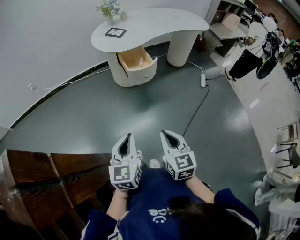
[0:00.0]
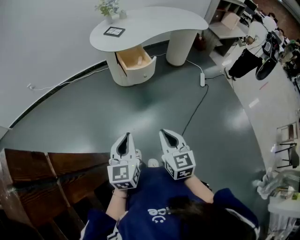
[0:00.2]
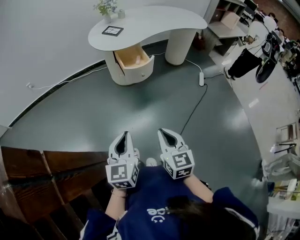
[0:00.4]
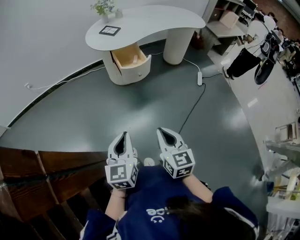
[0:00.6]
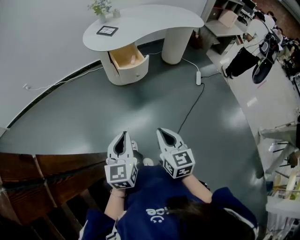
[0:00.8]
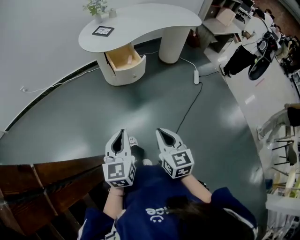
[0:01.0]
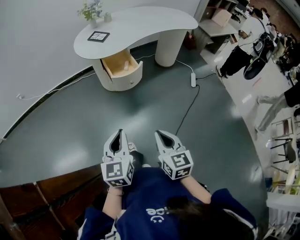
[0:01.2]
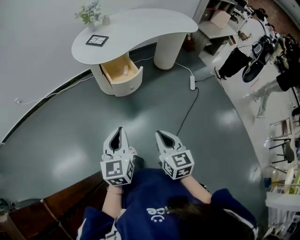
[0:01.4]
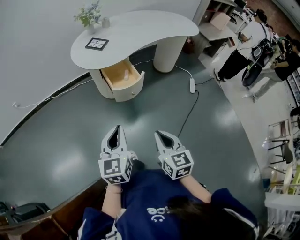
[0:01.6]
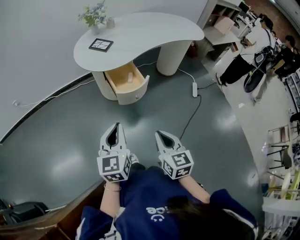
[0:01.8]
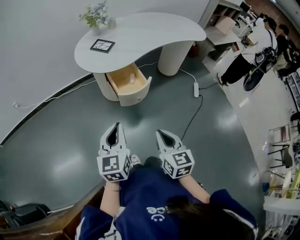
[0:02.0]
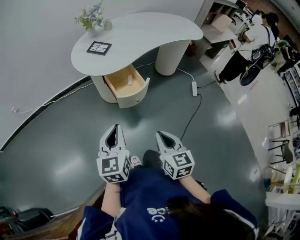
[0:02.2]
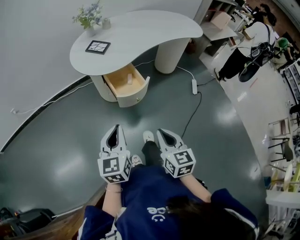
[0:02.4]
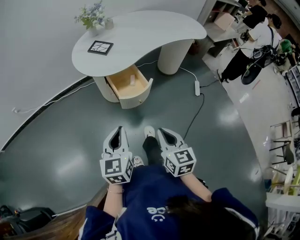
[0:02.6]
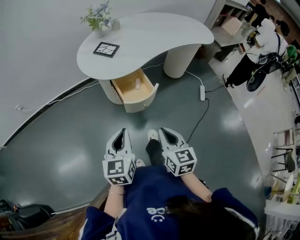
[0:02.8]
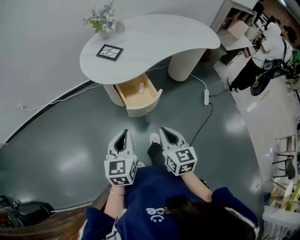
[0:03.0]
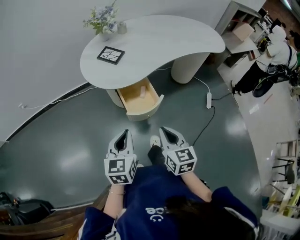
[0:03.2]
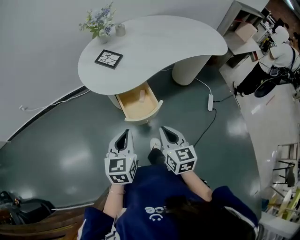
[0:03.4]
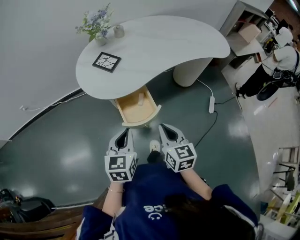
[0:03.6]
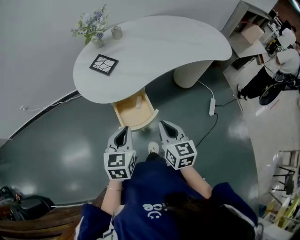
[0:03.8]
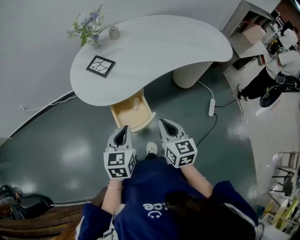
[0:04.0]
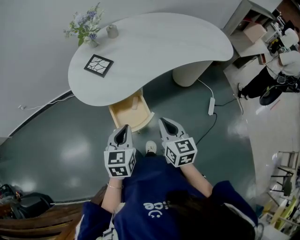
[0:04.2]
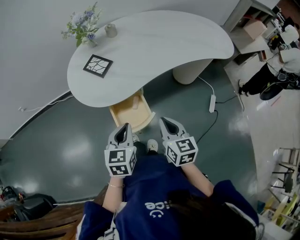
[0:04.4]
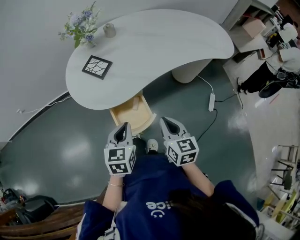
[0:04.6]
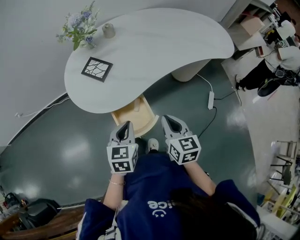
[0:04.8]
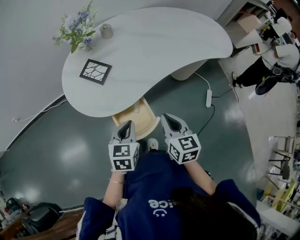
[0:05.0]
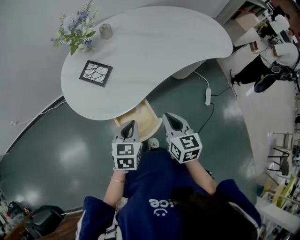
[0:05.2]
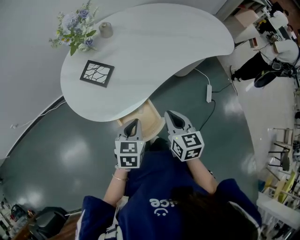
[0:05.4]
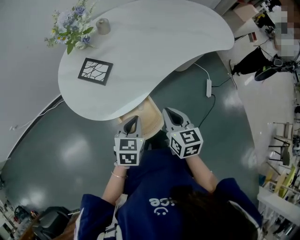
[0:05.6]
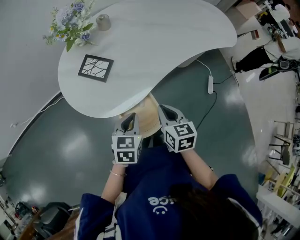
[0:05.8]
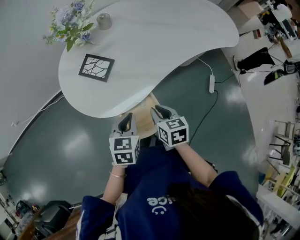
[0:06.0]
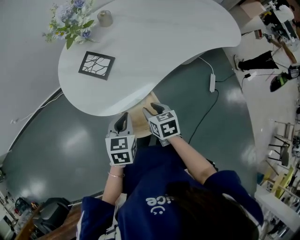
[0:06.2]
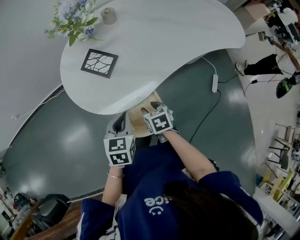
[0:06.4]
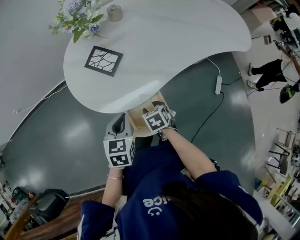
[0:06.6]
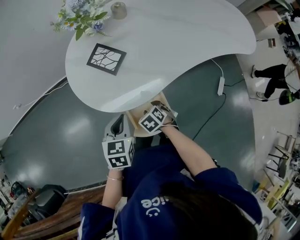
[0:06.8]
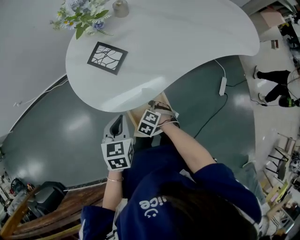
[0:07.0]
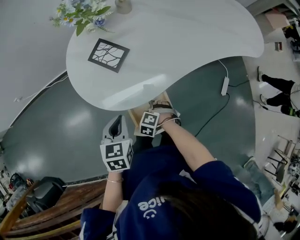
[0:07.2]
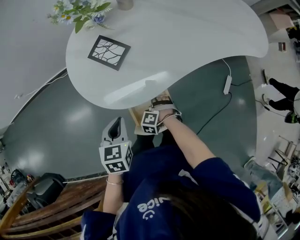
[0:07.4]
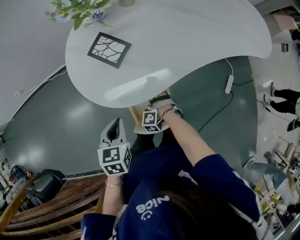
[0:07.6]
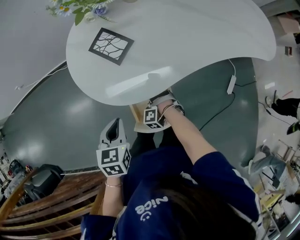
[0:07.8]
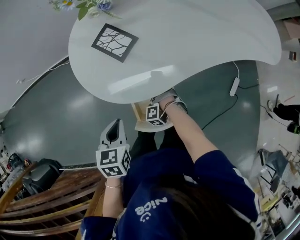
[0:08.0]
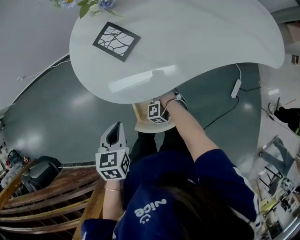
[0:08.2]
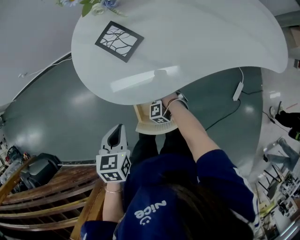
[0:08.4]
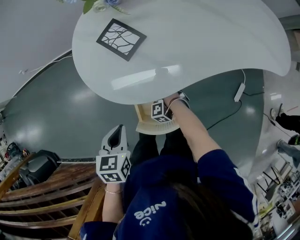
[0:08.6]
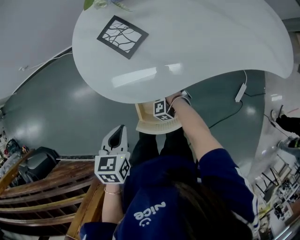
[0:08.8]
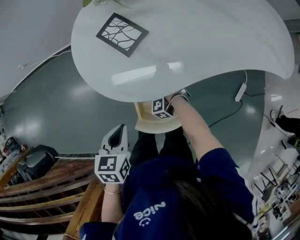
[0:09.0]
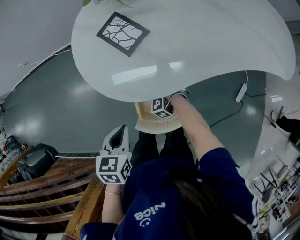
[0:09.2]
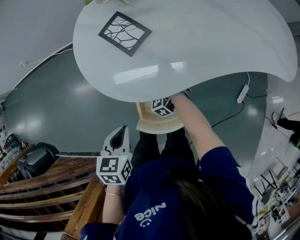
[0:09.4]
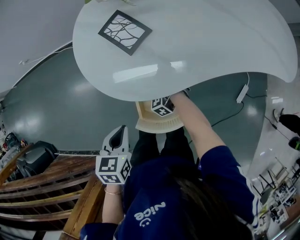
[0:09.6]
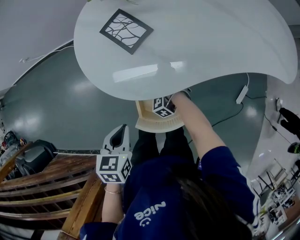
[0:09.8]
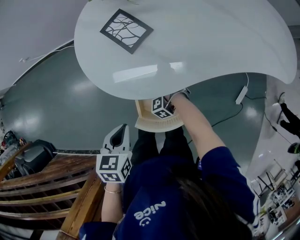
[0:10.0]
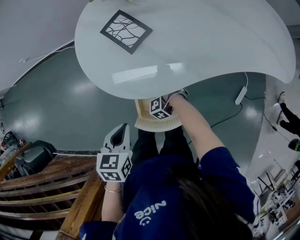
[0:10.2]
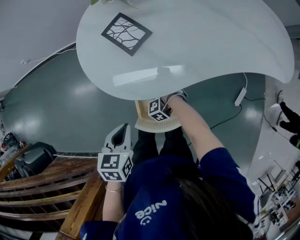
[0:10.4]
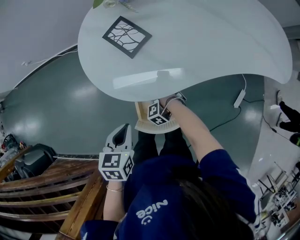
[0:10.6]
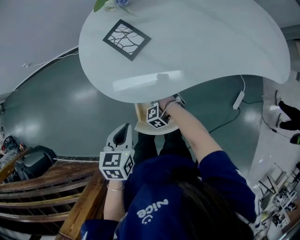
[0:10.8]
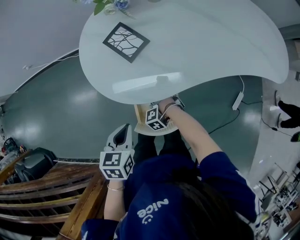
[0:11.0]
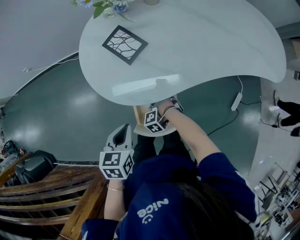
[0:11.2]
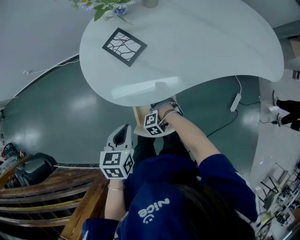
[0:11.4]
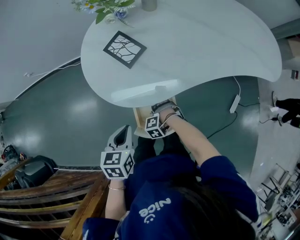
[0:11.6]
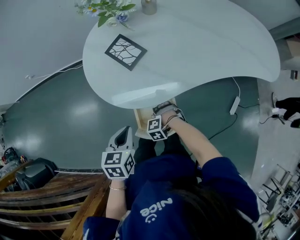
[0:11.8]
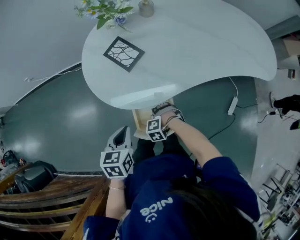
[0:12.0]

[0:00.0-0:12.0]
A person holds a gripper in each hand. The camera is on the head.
0:00.0 to 0:01.6: The two grippers go some 15 cm forward.
0:01.6 to 0:03.0: Both grippers travel together forward, about 15 cm.
0:03.0 to 0:04.4: The two grippers go about 20 cm forward and to the right.
0:04.4 to 0:06.0: The left gripper heads forward, to the left and downward, covering roughly 15 cm; the right gripper travels to the left, forward and downward by roughly 15 cm, and rotates about 20 degrees.
0:06.0 to 0:07.6: The left gripper ends up about 10 cm from where it was, and turns by some 20 degrees. Meanwhile the right gripper goes about 20 cm downward, twists some 110 degrees counterclockwise, seen from behind, and opens its fingers.
0:07.6 to 0:09.0: The right gripper travels downward by about 5 cm, and rotates roughly 30 degrees.
0:09.0 to 0:10.4: The right gripper closes up.
0:10.4 to 0:12.0: The right gripper is displaced upward by some 5 cm, and swivels about 20 degrees.

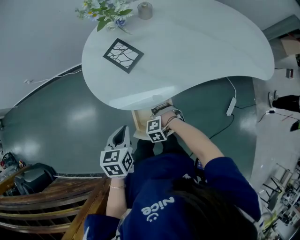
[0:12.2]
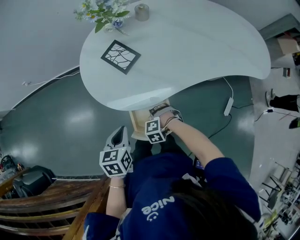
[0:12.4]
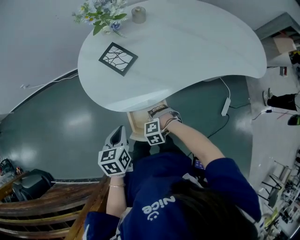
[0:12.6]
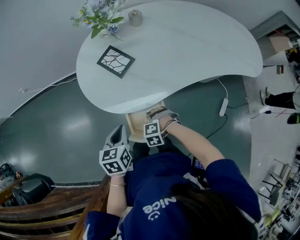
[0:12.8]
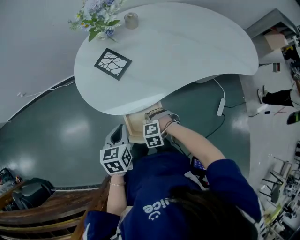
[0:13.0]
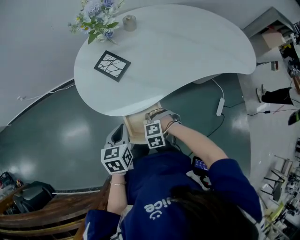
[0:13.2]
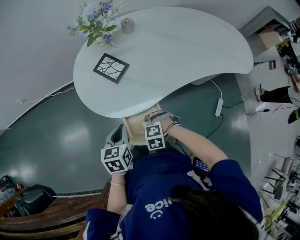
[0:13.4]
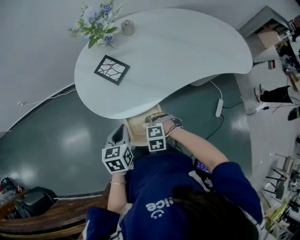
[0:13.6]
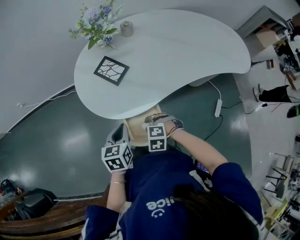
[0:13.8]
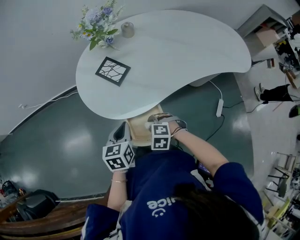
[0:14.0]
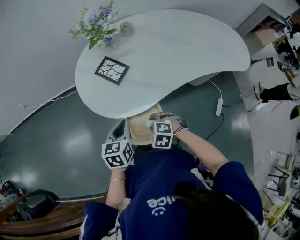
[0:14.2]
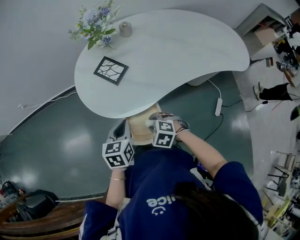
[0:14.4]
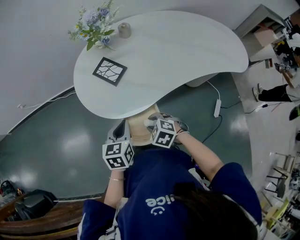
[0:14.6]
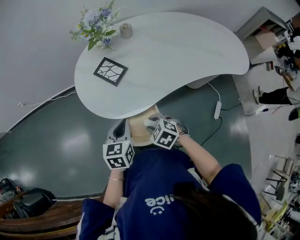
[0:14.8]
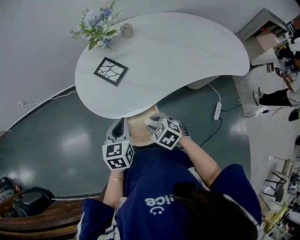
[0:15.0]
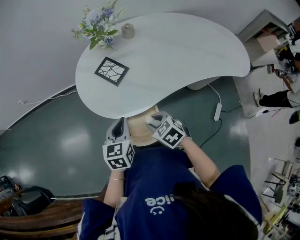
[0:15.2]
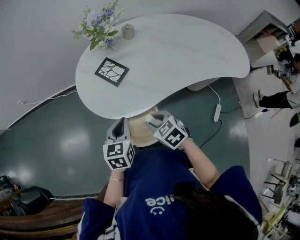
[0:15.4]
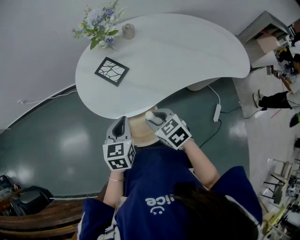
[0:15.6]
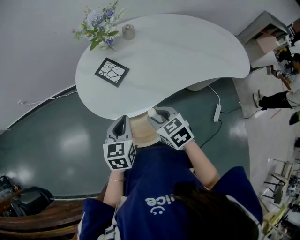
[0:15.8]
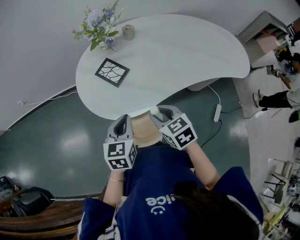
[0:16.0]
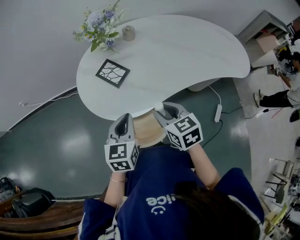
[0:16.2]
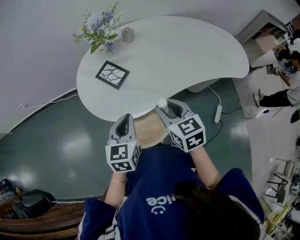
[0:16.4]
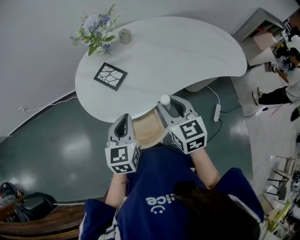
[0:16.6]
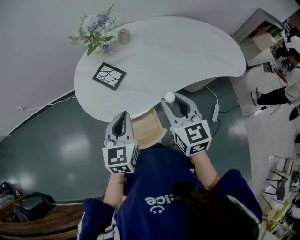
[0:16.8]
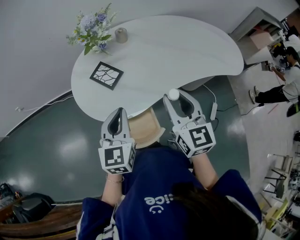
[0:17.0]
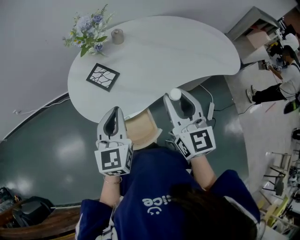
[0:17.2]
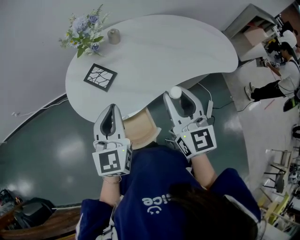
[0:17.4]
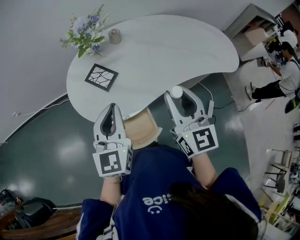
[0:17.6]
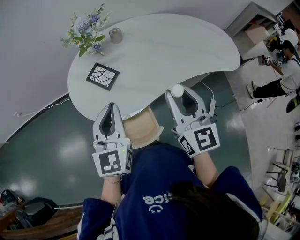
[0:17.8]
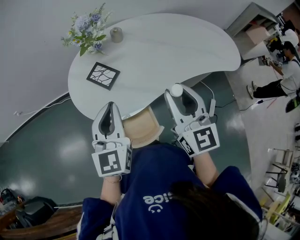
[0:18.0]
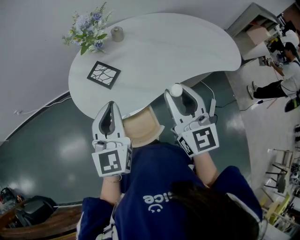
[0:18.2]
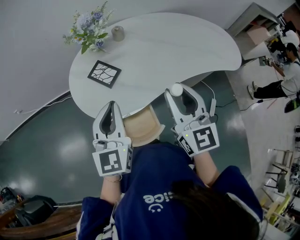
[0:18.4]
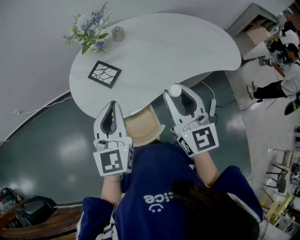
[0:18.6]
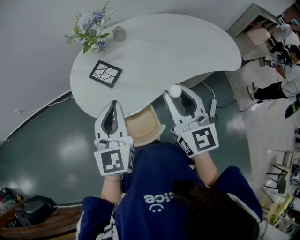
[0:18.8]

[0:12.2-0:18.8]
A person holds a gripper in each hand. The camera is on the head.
0:12.2 to 0:13.8: The right gripper is displaced upward by approximately 10 cm, and rotates approximately 30 degrees.
0:13.8 to 0:15.4: The left gripper shifts by some 5 cm, while the right gripper heads upward, covering roughly 10 cm, and twists about 40 degrees clockwise, seen from behind.
0:15.4 to 0:17.2: The left gripper is displaced upward by approximately 10 cm, and turns by roughly 20 degrees. The right gripper moves upward and to the right, some 25 cm, and points its fingers roughly 40 degrees further upward.
0:17.2 to 0:18.8: The grippers stay close to where they were, moving slightly.

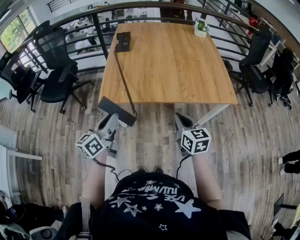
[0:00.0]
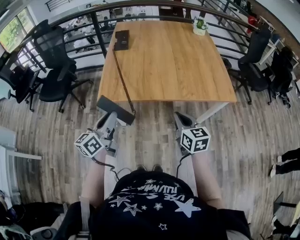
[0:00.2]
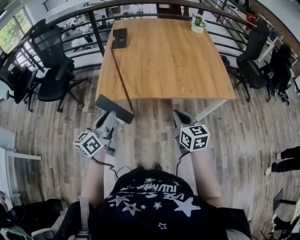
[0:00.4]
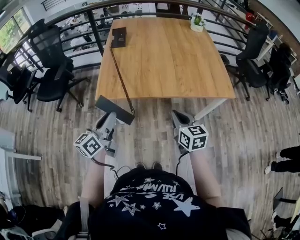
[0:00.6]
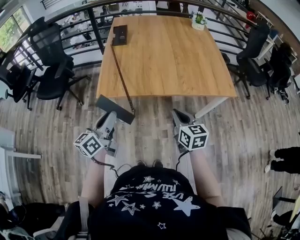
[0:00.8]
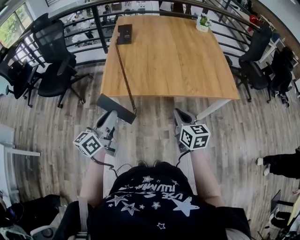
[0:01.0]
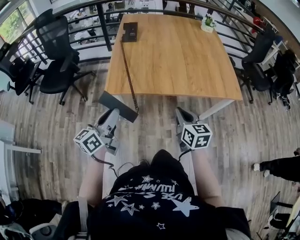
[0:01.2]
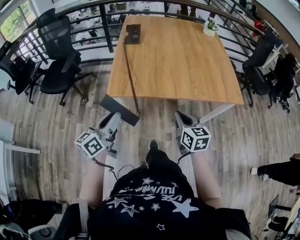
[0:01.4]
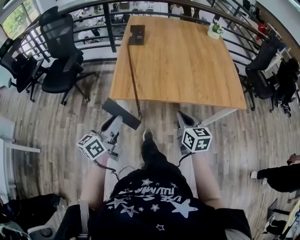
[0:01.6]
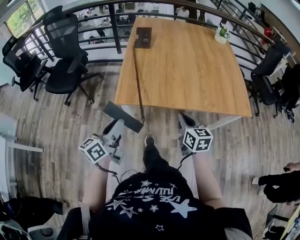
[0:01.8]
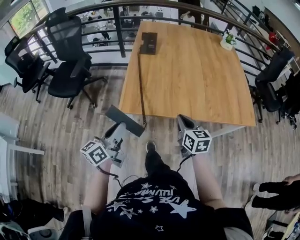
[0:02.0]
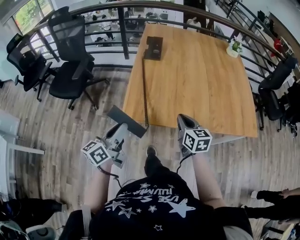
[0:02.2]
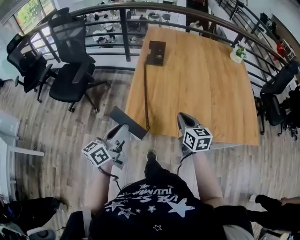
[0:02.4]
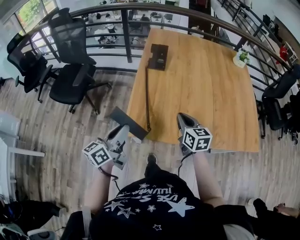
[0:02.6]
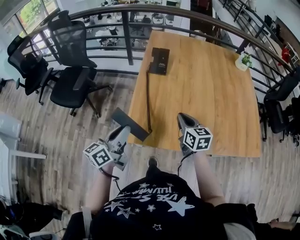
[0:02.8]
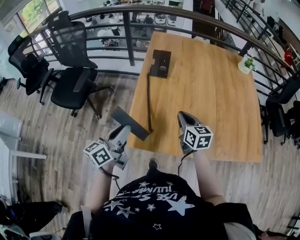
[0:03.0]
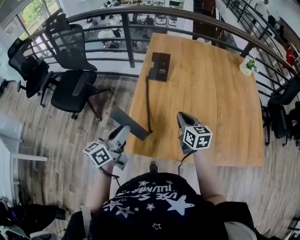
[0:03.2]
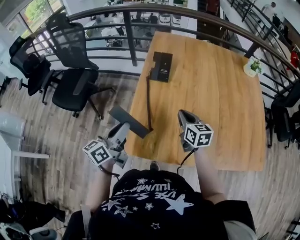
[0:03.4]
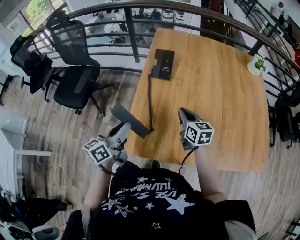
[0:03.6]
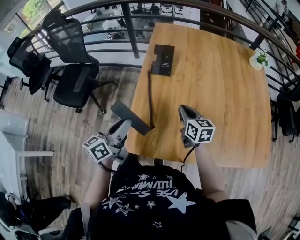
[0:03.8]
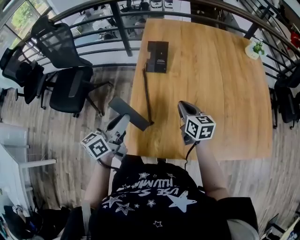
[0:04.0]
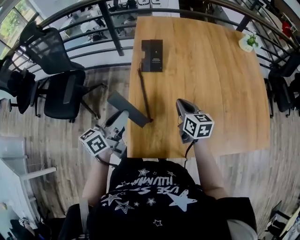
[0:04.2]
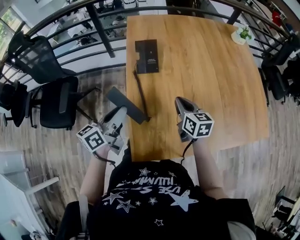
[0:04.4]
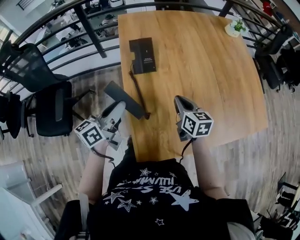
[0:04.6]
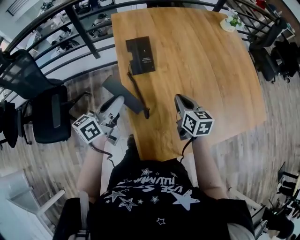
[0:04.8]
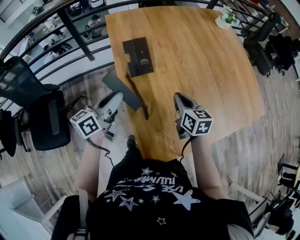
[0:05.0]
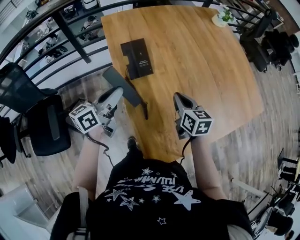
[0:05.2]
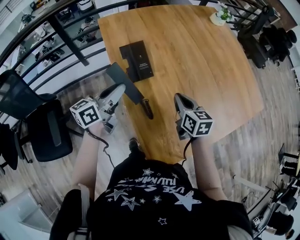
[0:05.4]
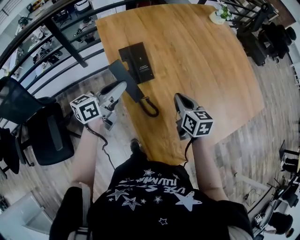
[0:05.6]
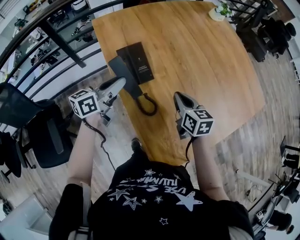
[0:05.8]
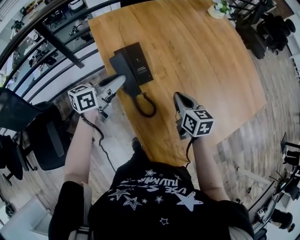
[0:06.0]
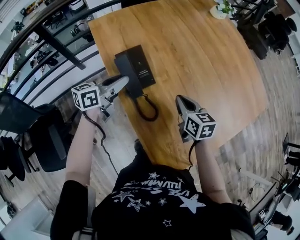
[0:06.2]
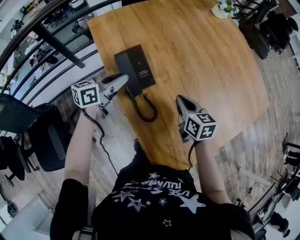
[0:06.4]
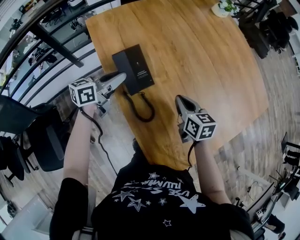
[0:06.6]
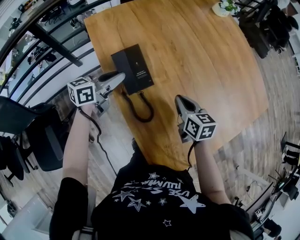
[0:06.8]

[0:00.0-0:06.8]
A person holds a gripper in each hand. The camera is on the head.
0:00.0 to 0:01.4: The two grippers go approximately 5 cm to the left.
0:01.4 to 0:02.8: Both grippers move forward, approximately 25 cm.
0:02.8 to 0:04.0: Both grippers travel together forward, some 10 cm.
0:04.0 to 0:05.4: The right gripper shifts by some 5 cm, and turns by approximately 30 degrees, while the left gripper shifts by some 25 cm, and swivels approximately 30 degrees.
0:05.4 to 0:06.8: The right gripper shifts roughly 5 cm forward. The left gripper is displaced forward and downward by about 15 cm, and changes its angle by some 20 degrees.
